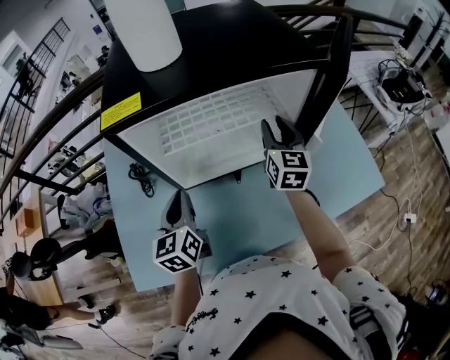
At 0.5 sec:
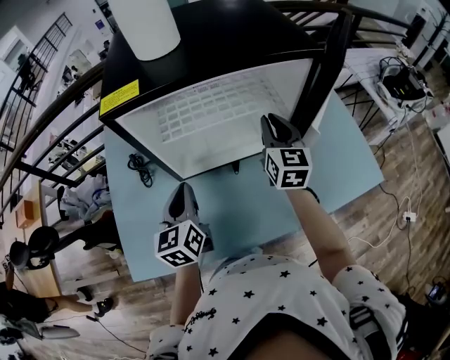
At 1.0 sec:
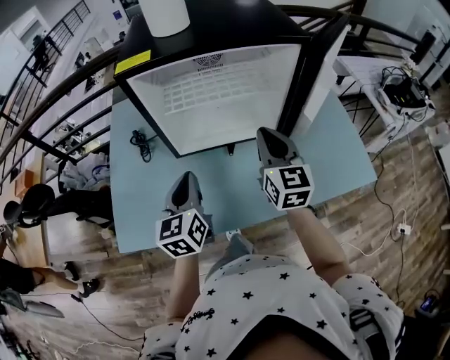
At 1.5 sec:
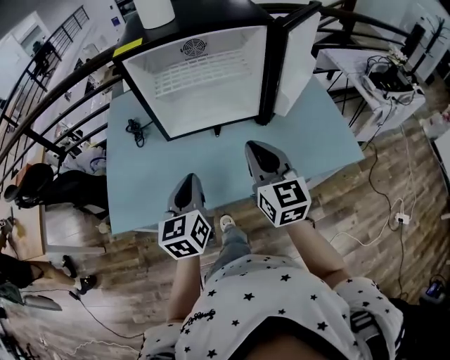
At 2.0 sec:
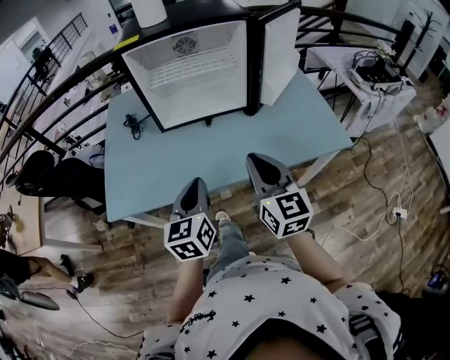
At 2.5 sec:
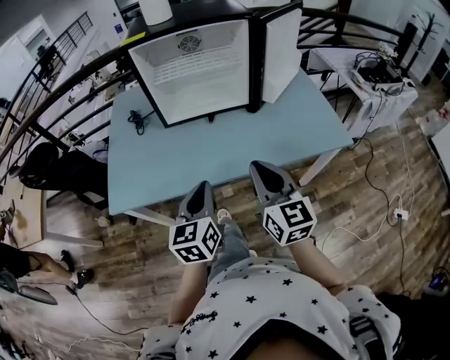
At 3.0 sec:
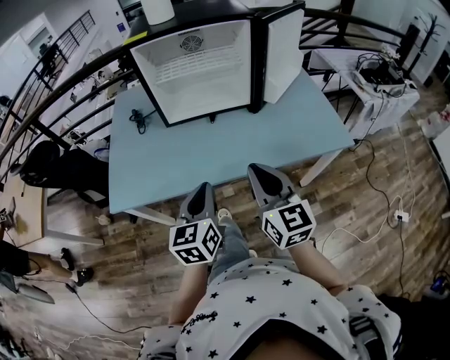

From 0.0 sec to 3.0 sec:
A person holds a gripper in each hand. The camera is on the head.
From 0.0 sec to 1.5 sec: The right gripper heads backward, covering roughly 25 cm, turns by about 20 degrees, and closes, while the left gripper goes approximately 20 cm backward and to the right.
From 1.5 sec to 3.0 sec: Both grippers move backward, approximately 15 cm.

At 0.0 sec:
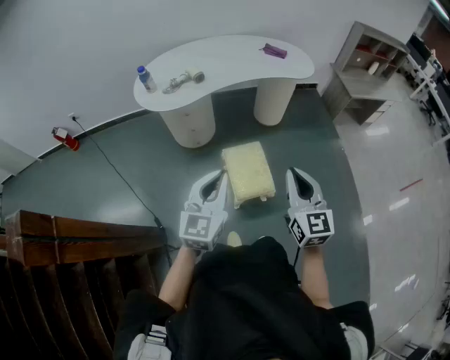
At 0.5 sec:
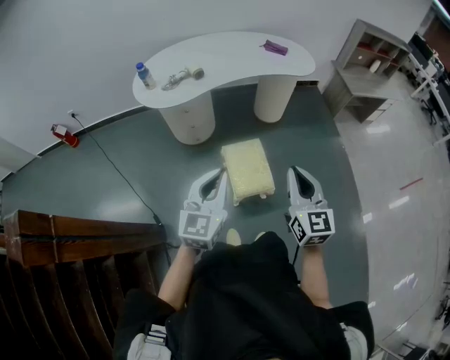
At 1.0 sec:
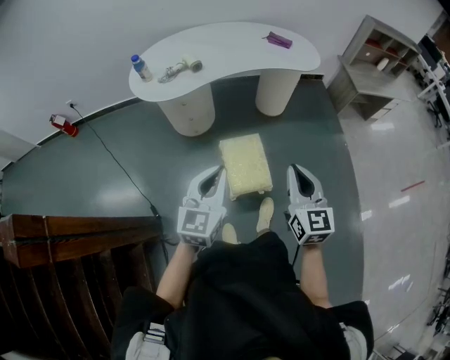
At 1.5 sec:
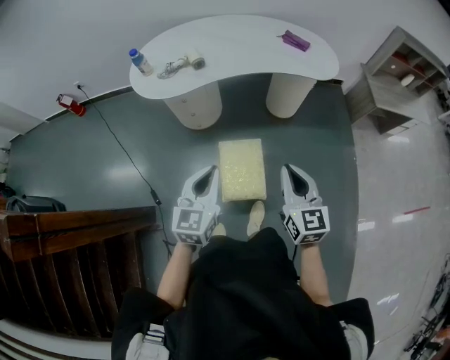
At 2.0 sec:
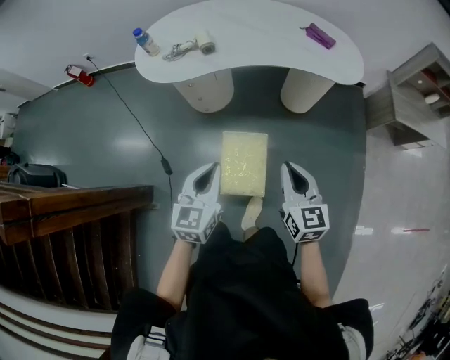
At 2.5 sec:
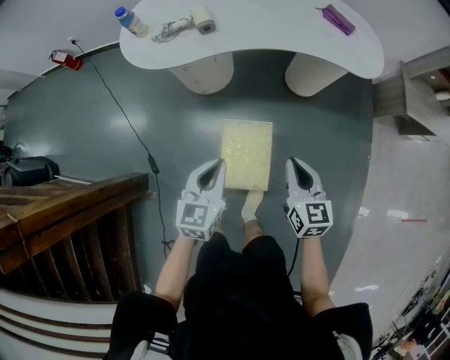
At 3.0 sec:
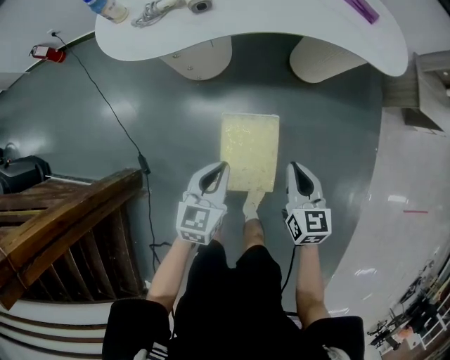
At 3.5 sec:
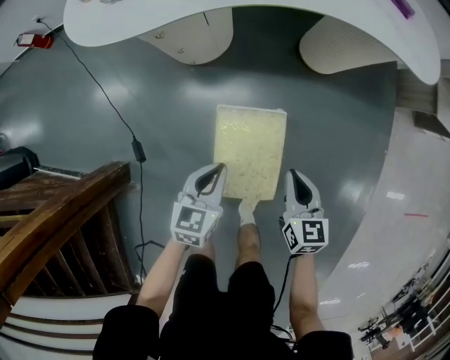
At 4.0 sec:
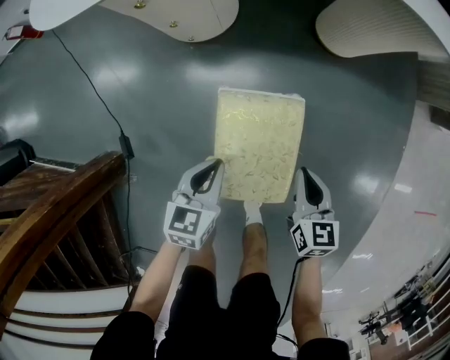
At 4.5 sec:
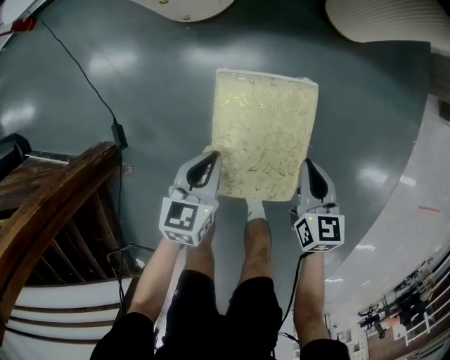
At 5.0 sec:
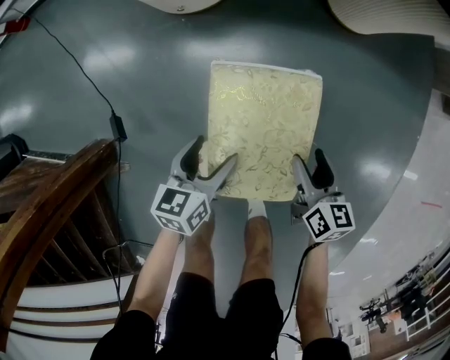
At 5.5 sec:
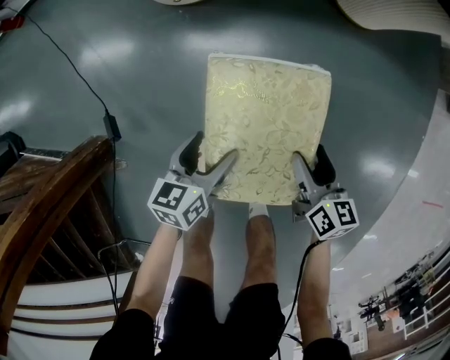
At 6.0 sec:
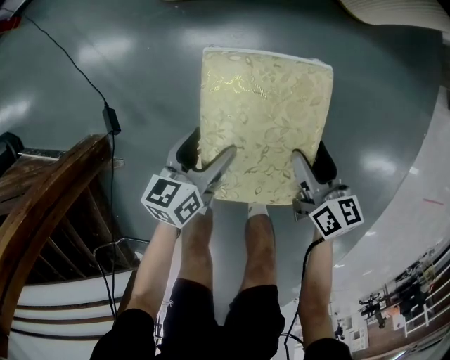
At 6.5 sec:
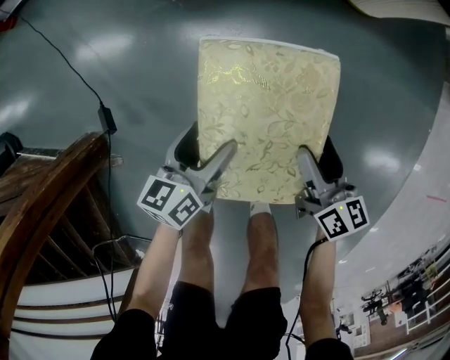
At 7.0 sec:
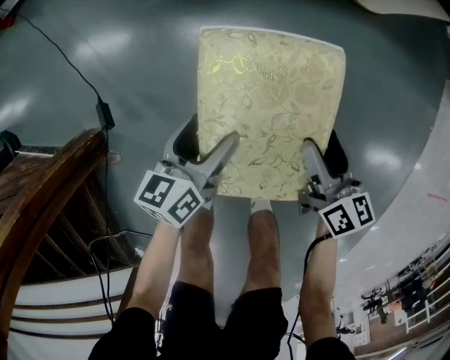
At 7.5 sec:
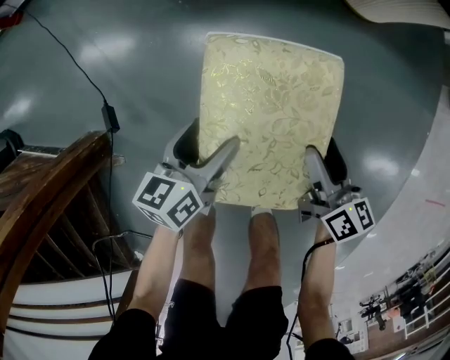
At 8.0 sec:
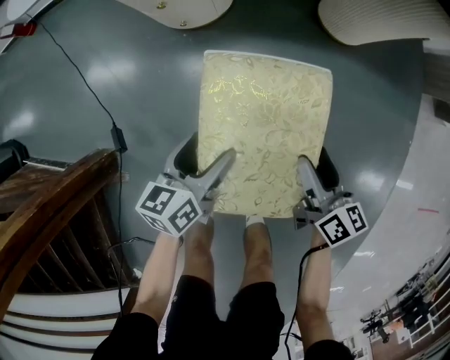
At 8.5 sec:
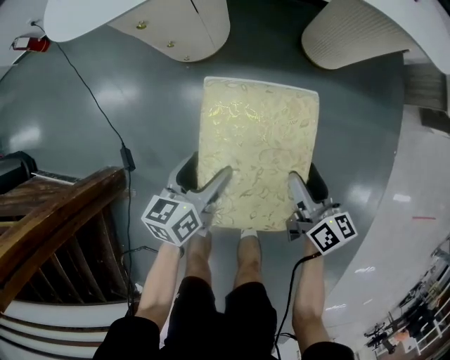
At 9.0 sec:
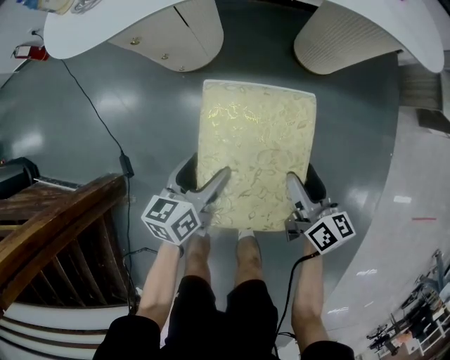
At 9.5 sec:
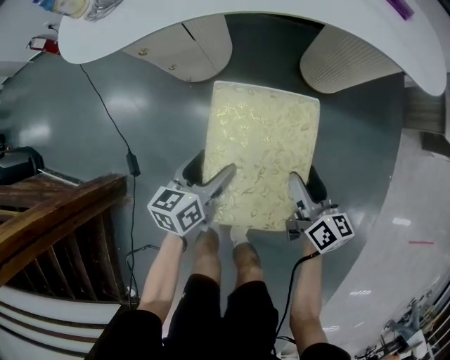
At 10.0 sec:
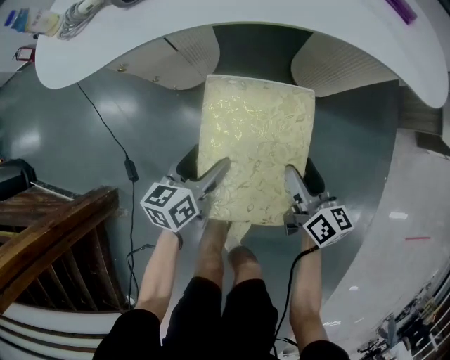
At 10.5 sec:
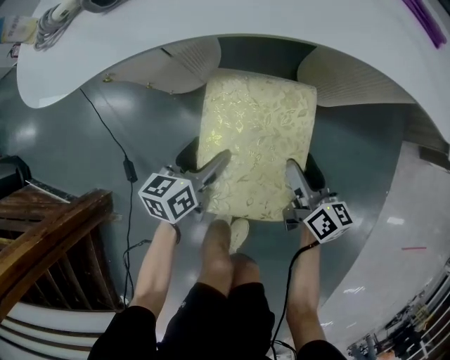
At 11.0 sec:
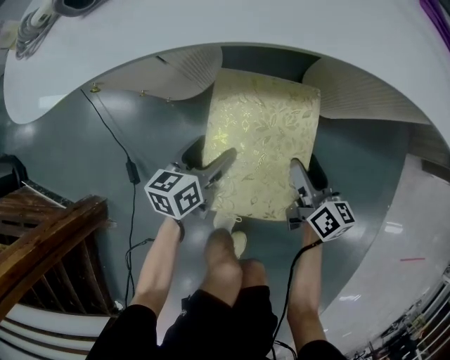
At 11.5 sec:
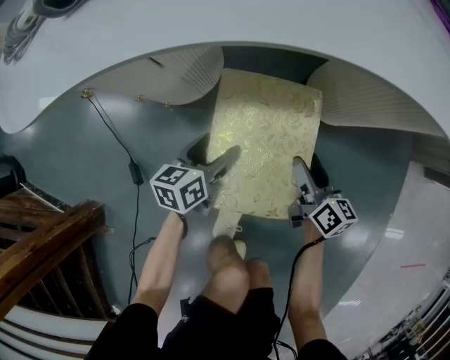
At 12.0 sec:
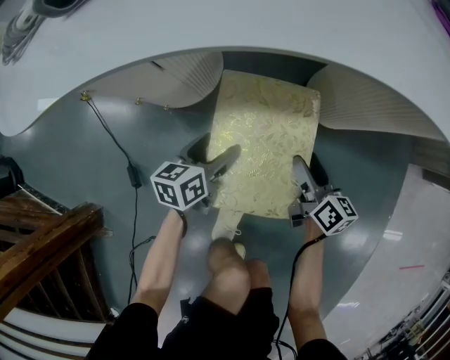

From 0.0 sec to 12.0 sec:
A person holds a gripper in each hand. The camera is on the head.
From 0.0 sec to 2.0 sec: Both grippers travel together forward, downward and to the right, approximately 30 cm. The right gripper changes its angle by about 20 degrees, while the left gripper turns by approximately 20 degrees.
From 2.0 sec to 4.0 sec: The two grippers go roughly 50 cm downward. The left gripper turns by some 30 degrees, while the right gripper turns by roughly 20 degrees.
From 4.0 sec to 6.0 sec: The two grippers go approximately 15 cm downward. The left gripper opens up; the right gripper changes its angle by about 20 degrees, and opens its fingers.
From 6.0 sec to 12.0 sec: The grippers move only a little.

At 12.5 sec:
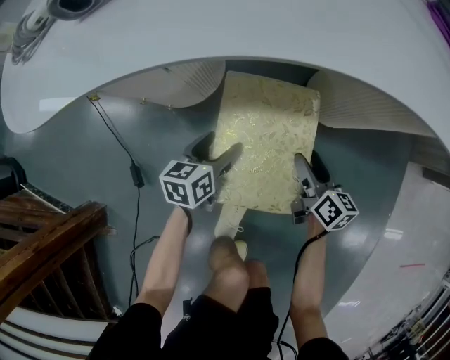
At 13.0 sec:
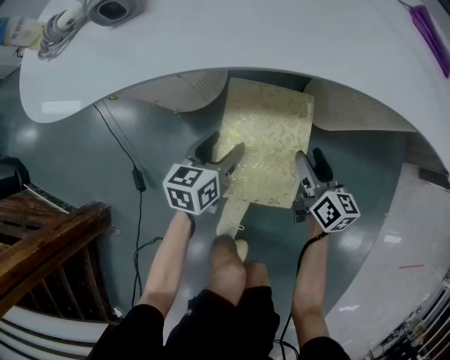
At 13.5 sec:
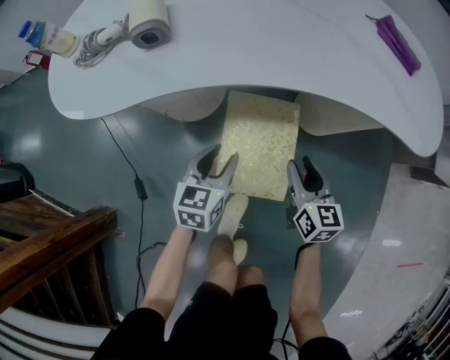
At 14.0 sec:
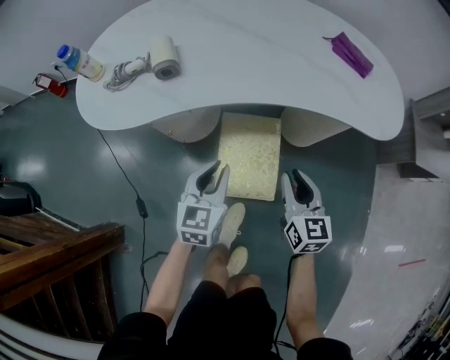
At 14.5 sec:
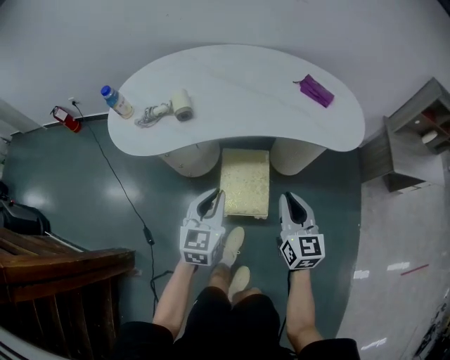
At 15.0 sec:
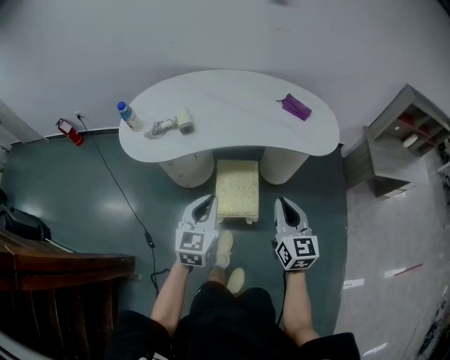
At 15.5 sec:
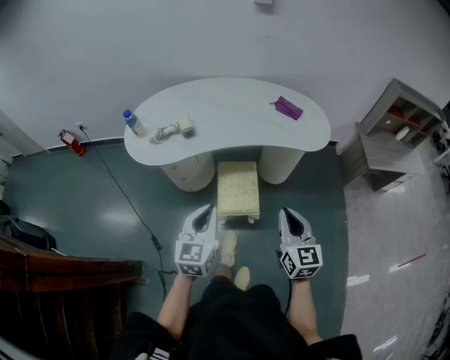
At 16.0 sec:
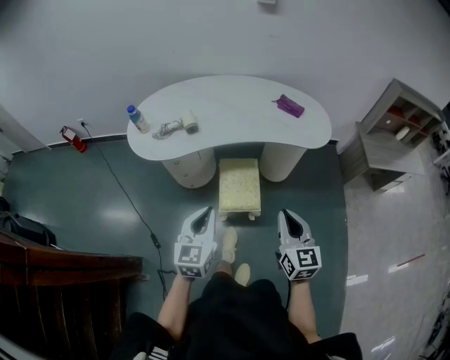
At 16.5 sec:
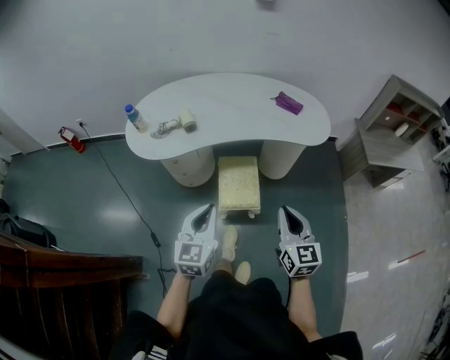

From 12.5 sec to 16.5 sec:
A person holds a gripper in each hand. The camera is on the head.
From 12.5 sec to 14.5 sec: The two grippers go roughly 50 cm upward. The left gripper swivels roughly 40 degrees, and closes its fingers, while the right gripper swivels roughly 40 degrees, and closes its fingers.
From 14.5 sec to 16.5 sec: Both grippers move backward and upward, some 25 cm.

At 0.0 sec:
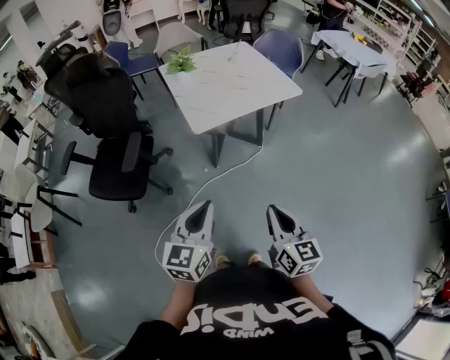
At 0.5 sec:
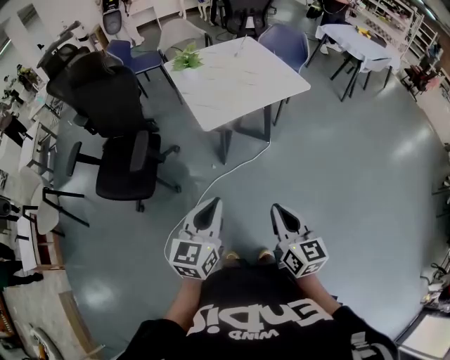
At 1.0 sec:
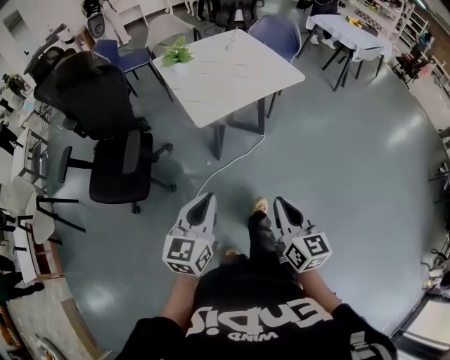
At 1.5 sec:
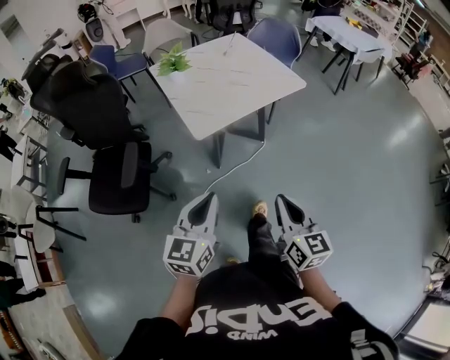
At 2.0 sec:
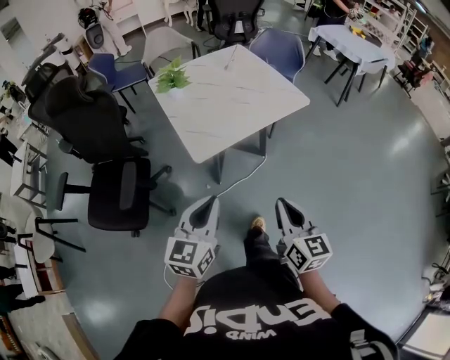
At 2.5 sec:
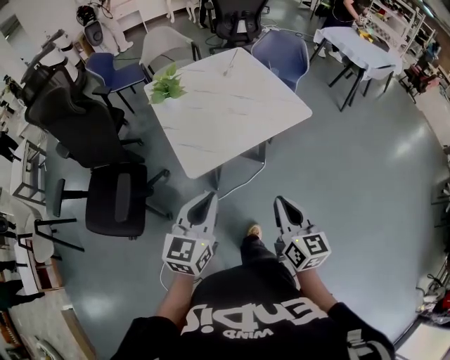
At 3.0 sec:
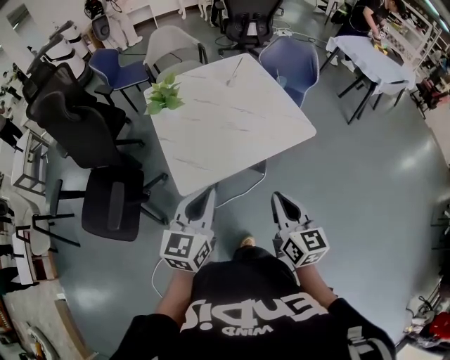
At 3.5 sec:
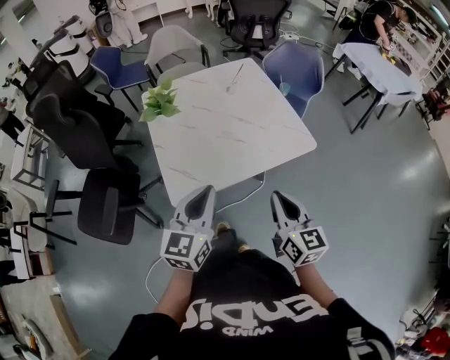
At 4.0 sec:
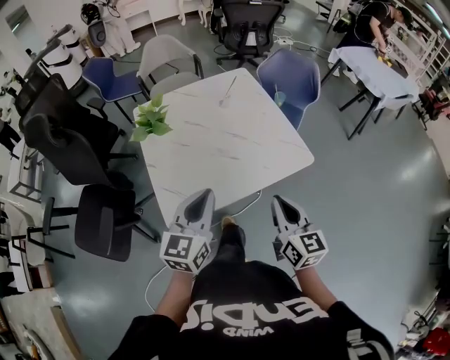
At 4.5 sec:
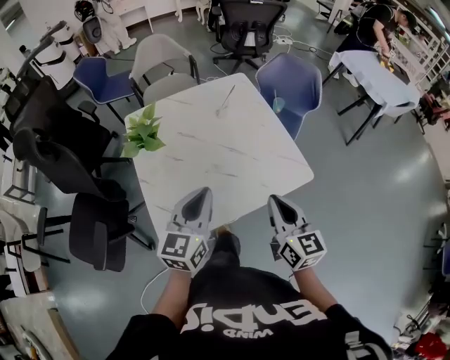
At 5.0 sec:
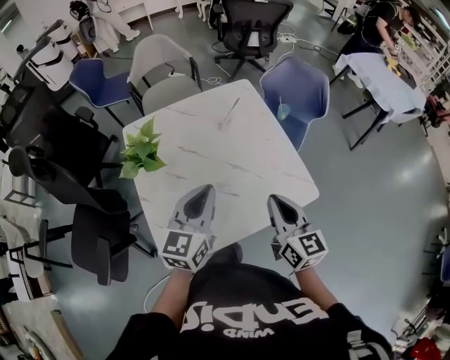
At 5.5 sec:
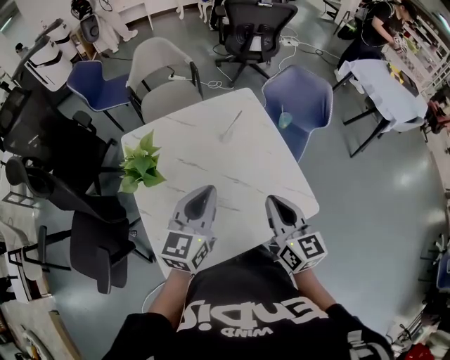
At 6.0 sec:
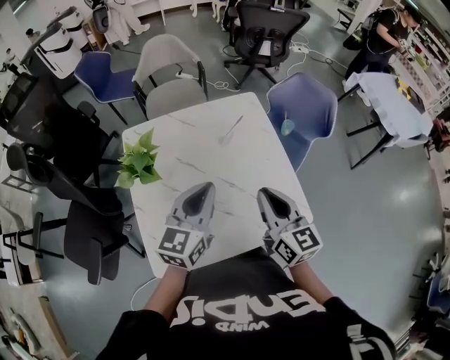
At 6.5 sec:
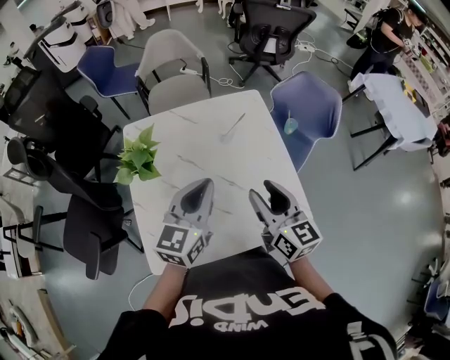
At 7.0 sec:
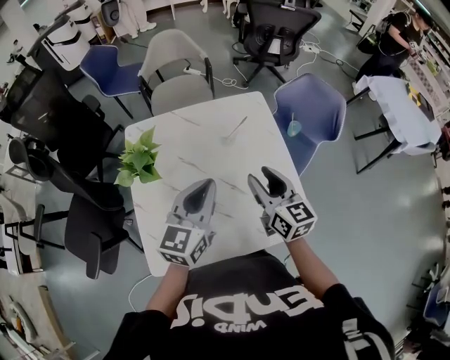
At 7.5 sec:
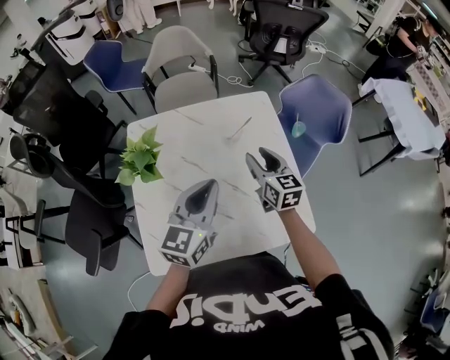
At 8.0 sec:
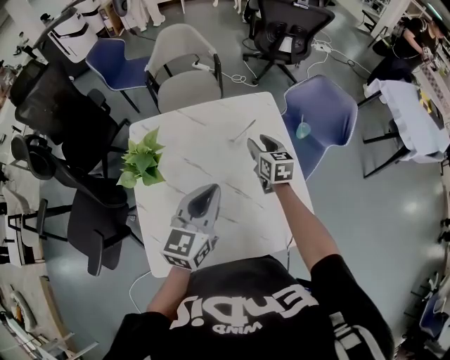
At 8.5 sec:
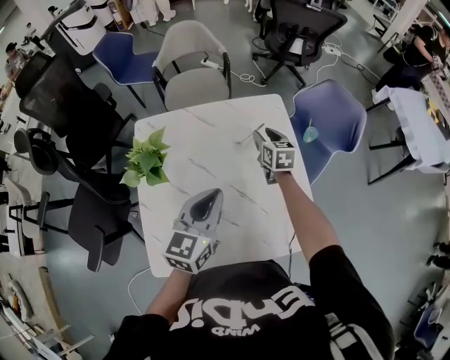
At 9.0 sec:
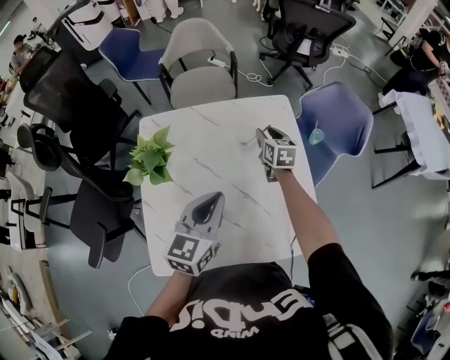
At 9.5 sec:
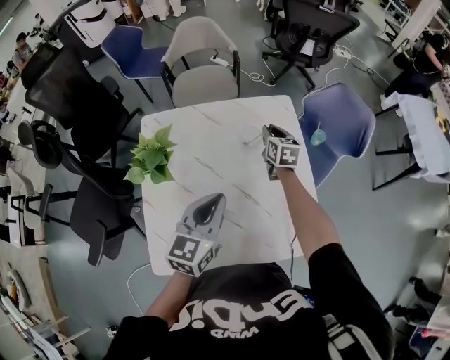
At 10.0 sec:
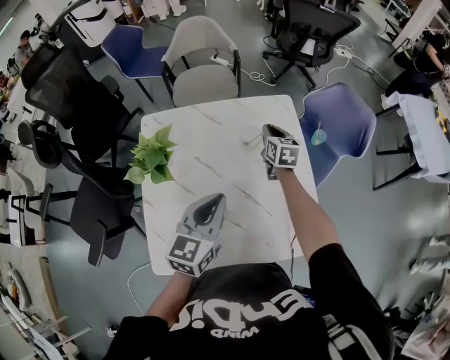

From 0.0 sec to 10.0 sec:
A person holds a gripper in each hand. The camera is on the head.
From 0.0 sec to 2.0 sec: The two grippers go some 20 cm forward.
From 2.0 sec to 4.0 sec: Both grippers move forward, roughly 35 cm.
From 4.0 sec to 6.0 sec: Both grippers travel together forward, approximately 25 cm.
From 6.0 sec to 8.0 sec: The right gripper shifts roughly 30 cm forward and downward, and opens.
From 8.0 sec to 10.0 sec: The right gripper shifts some 10 cm forward, and closes.
